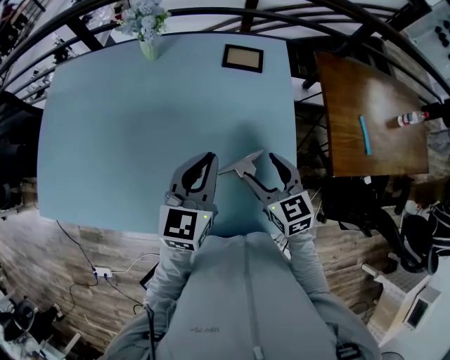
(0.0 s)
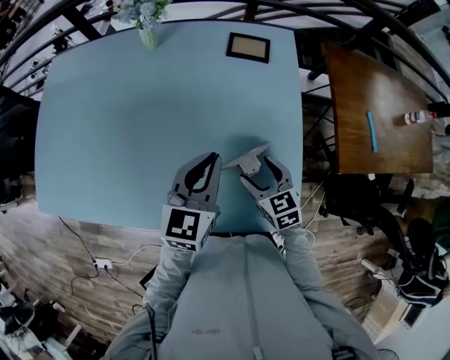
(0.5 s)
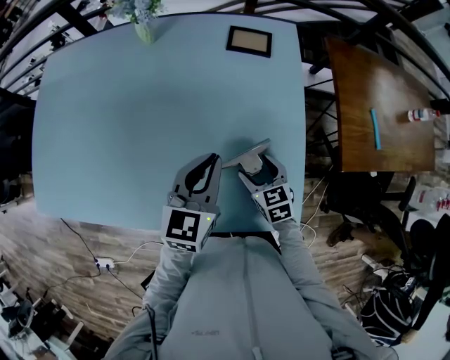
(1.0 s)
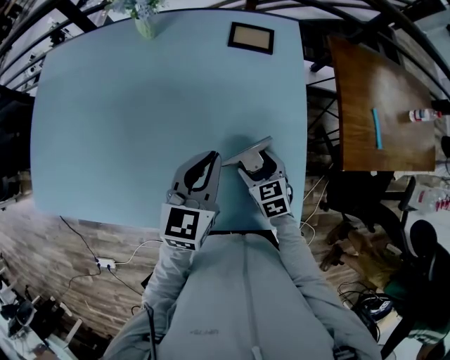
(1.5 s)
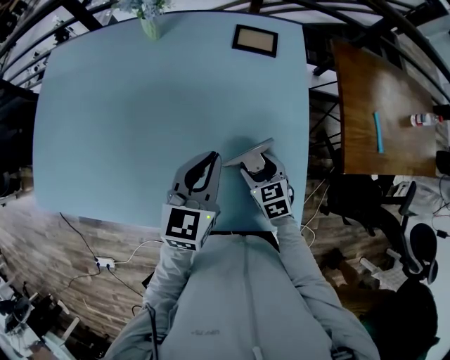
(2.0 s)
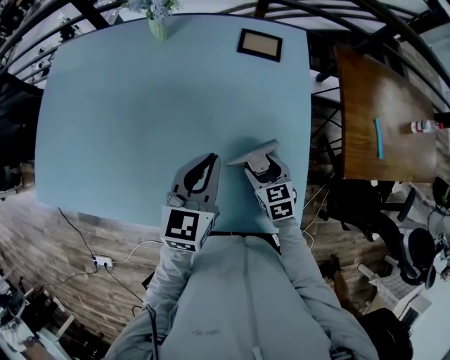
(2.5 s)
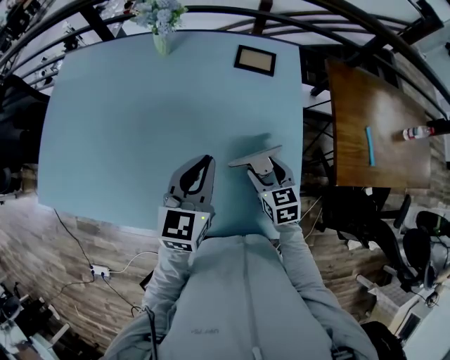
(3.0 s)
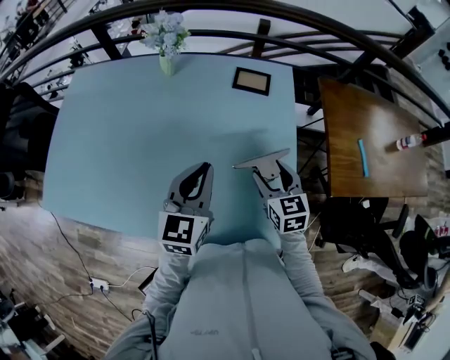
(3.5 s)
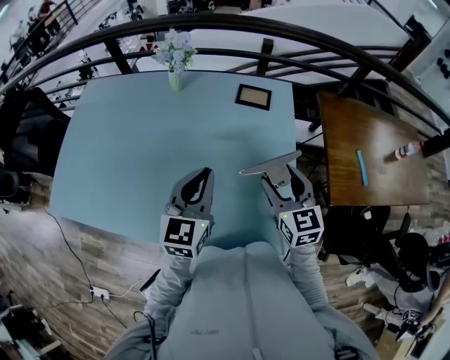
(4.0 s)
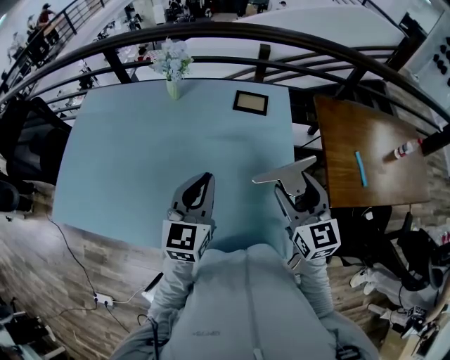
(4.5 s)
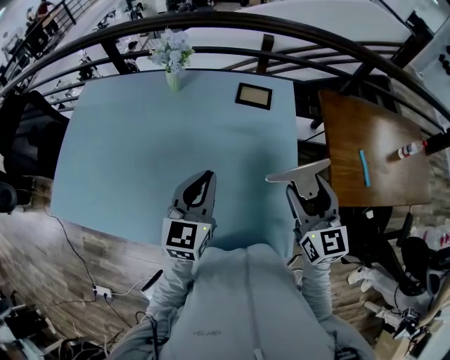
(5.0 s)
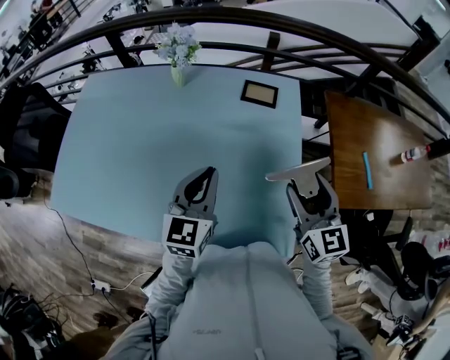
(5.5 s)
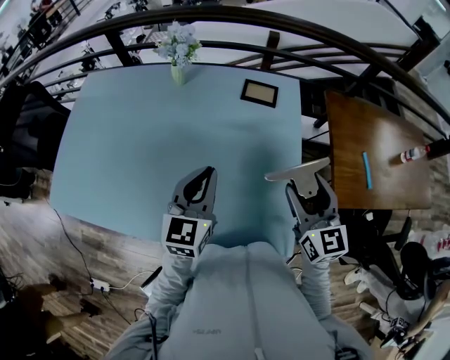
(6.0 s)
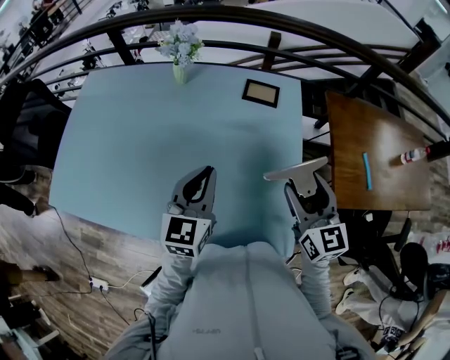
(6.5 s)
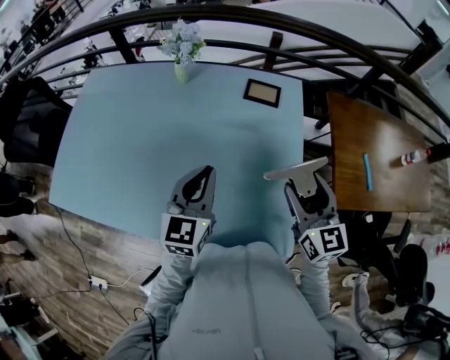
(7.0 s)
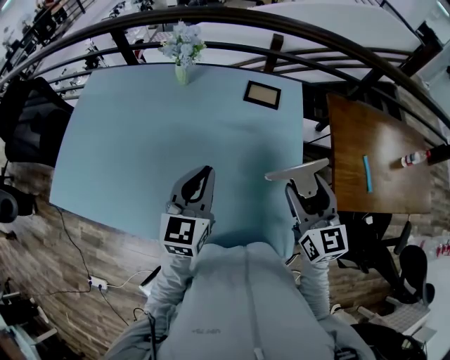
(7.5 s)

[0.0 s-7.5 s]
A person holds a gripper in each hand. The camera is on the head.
0.0 to 2.0 s: The left gripper shifts about 5 cm downward, while the right gripper is displaced downward by approximately 15 cm.
2.0 to 4.0 s: The left gripper heads upward, covering some 10 cm; the right gripper shifts about 25 cm upward, and rotates approximately 30 degrees.
4.0 to 5.5 s: The right gripper ends up about 5 cm from where it was.
5.5 to 7.5 s: The two grippers keep their place.

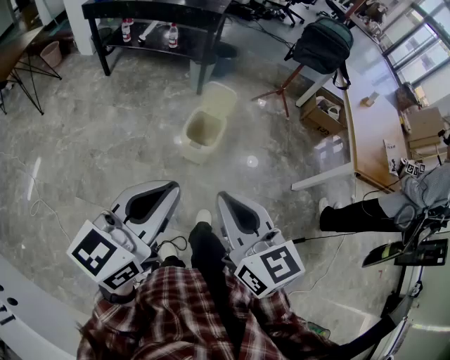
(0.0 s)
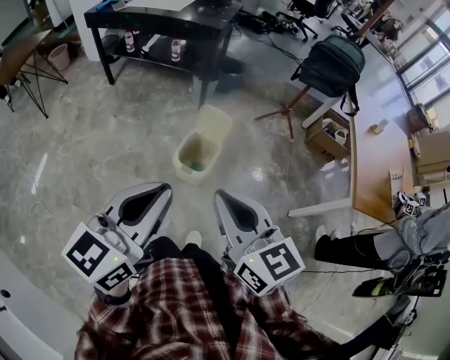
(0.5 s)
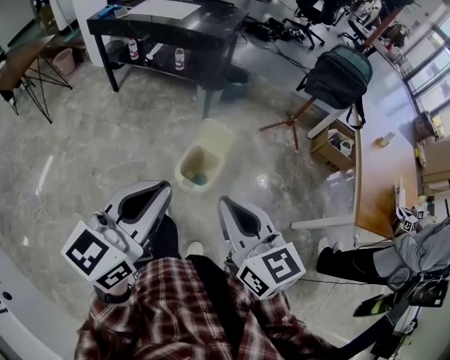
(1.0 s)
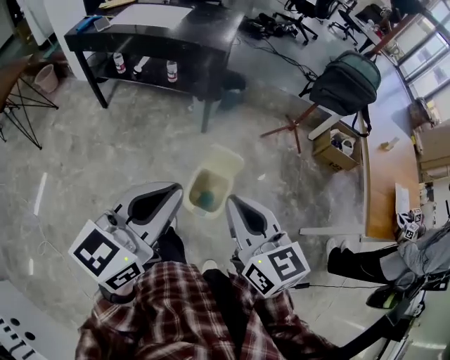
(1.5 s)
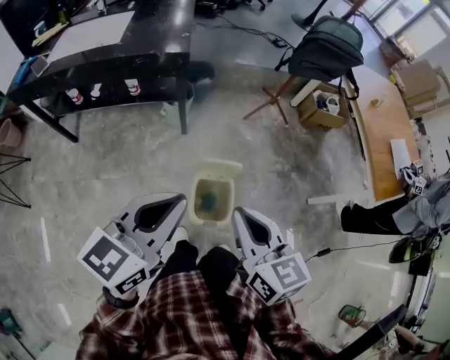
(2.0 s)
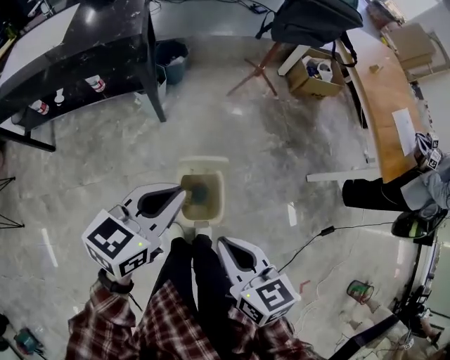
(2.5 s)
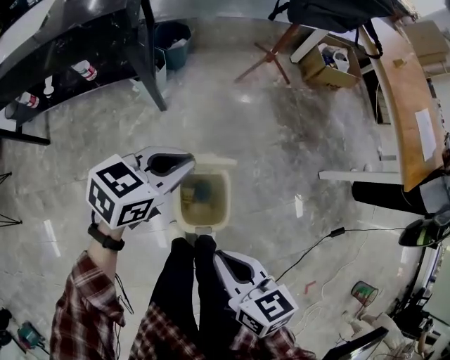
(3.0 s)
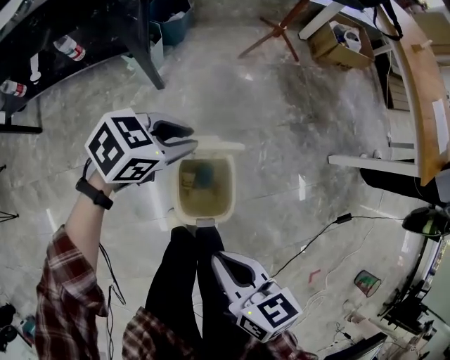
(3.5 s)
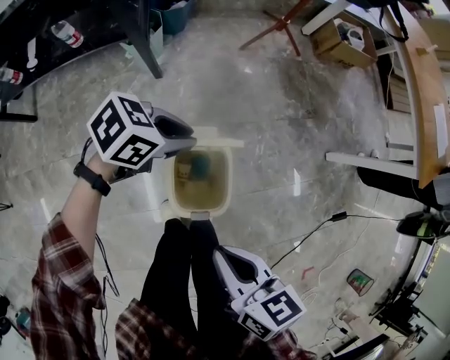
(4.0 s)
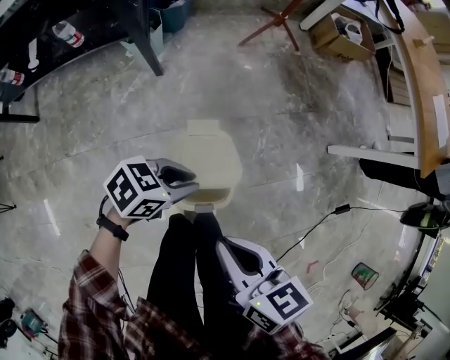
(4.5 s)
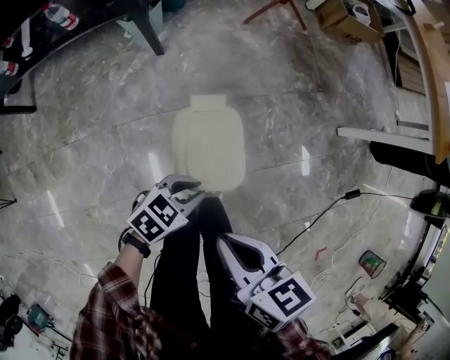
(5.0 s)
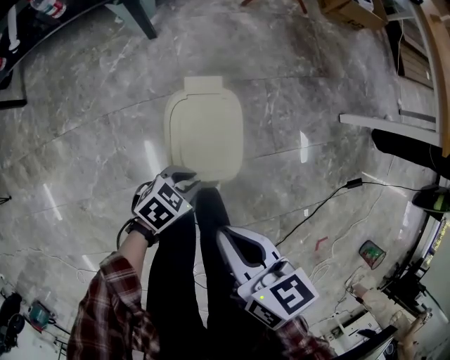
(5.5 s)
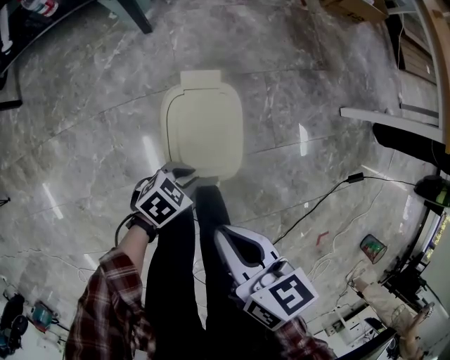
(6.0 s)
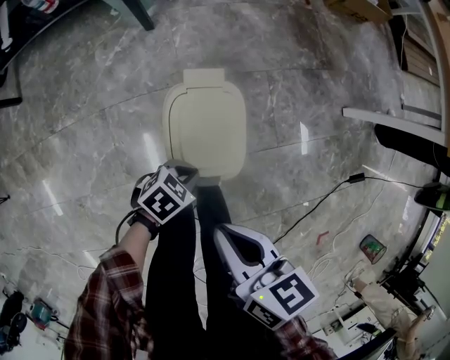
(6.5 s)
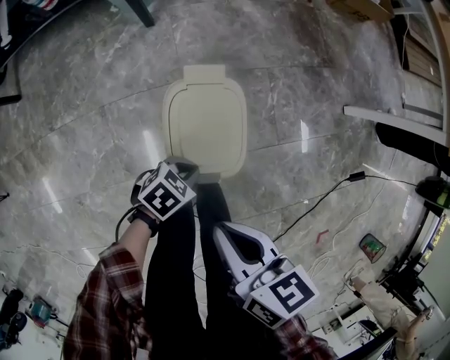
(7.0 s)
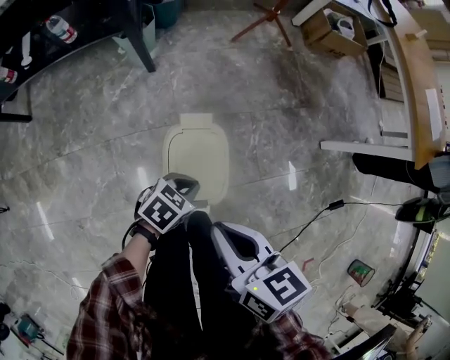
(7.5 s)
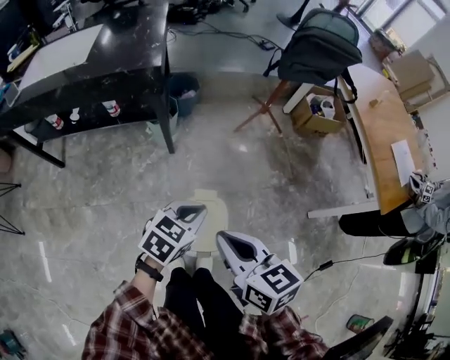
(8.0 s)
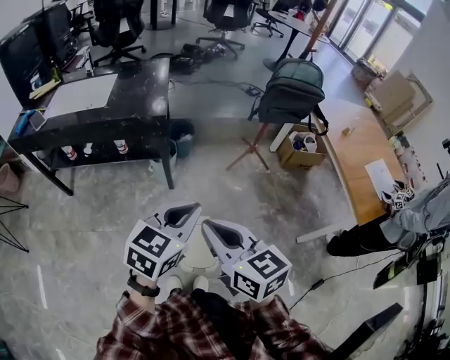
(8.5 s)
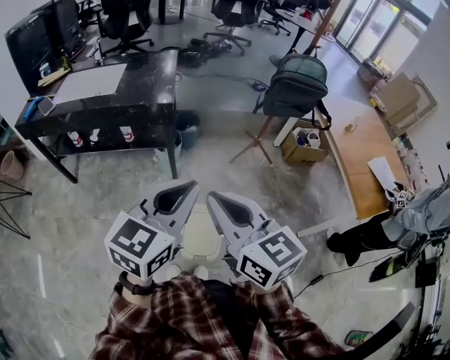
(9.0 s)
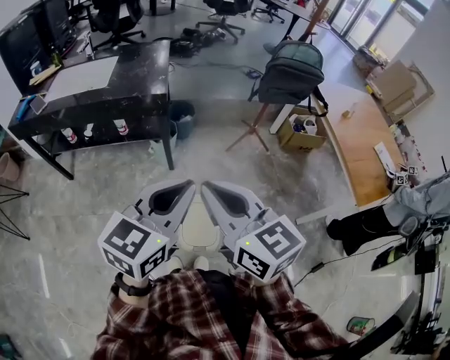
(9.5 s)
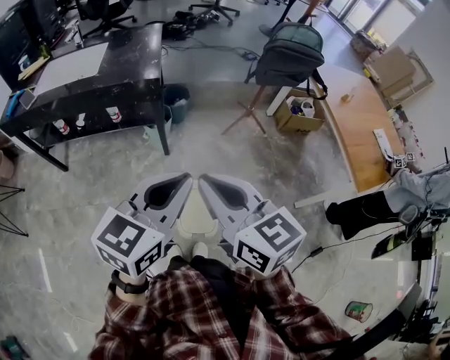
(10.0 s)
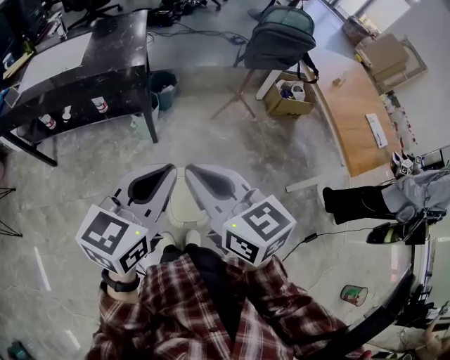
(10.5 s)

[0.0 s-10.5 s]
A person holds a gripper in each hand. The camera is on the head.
0.0 to 2.0 s: The pair of grippers is taken approximately 50 cm. The left gripper rotates roughly 20 degrees; the right gripper turns by some 30 degrees.
2.0 to 4.0 s: Both grippers move downward, approximately 35 cm. The right gripper changes its angle by about 30 degrees. Meanwhile the left gripper turns by roughly 50 degrees.
4.0 to 6.5 s: The right gripper travels downward by some 10 cm; the left gripper shifts by some 30 cm.
6.5 to 8.5 s: Both grippers move upward, some 50 cm. The left gripper points its fingers some 30 degrees further upward. Meanwhile the right gripper changes its angle by about 40 degrees.
8.5 to 10.5 s: The left gripper moves roughly 5 cm.

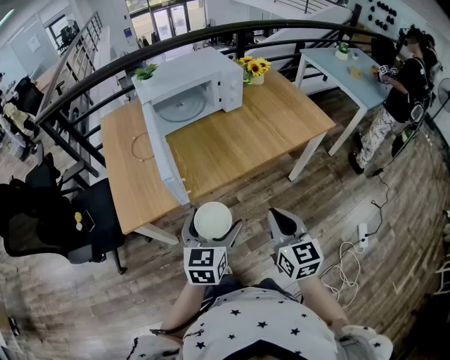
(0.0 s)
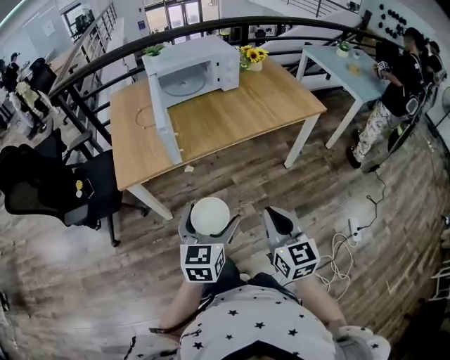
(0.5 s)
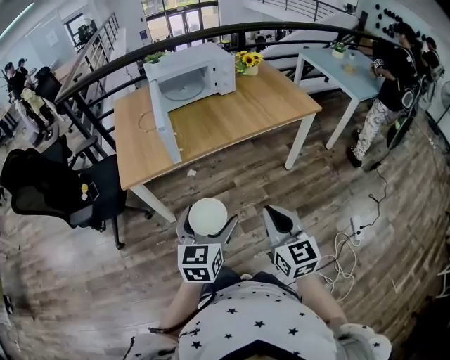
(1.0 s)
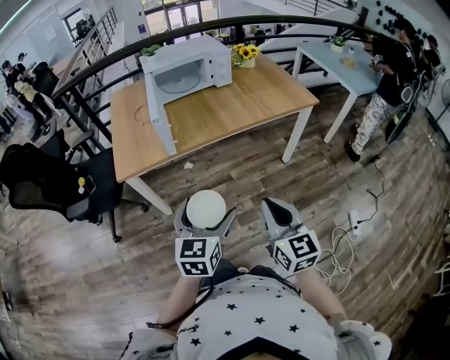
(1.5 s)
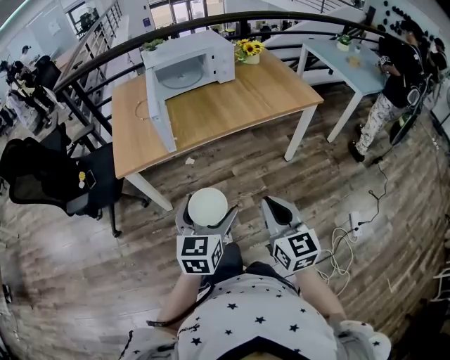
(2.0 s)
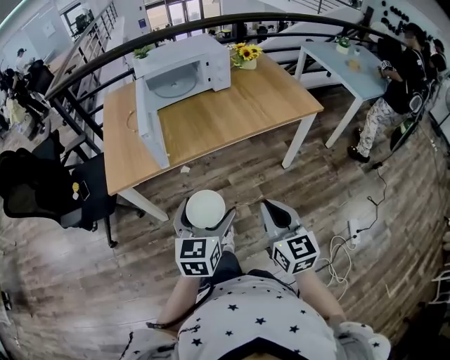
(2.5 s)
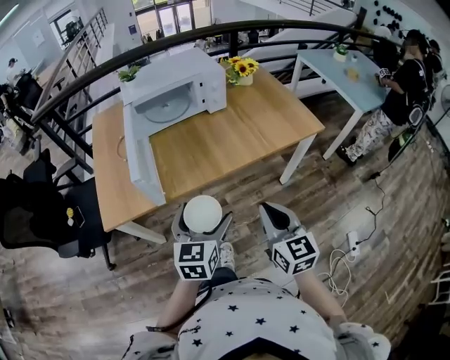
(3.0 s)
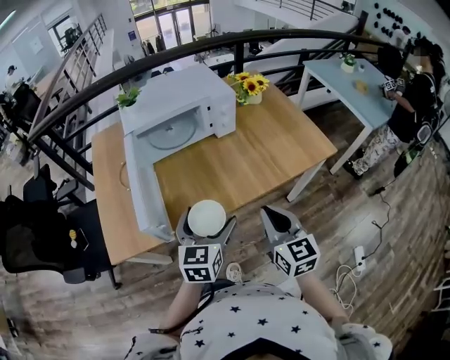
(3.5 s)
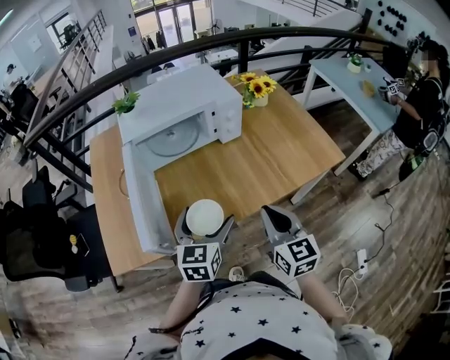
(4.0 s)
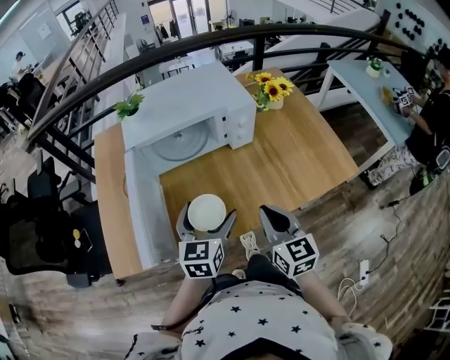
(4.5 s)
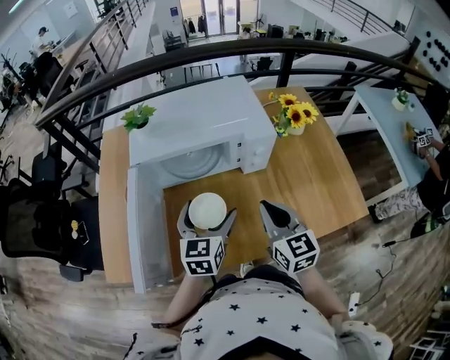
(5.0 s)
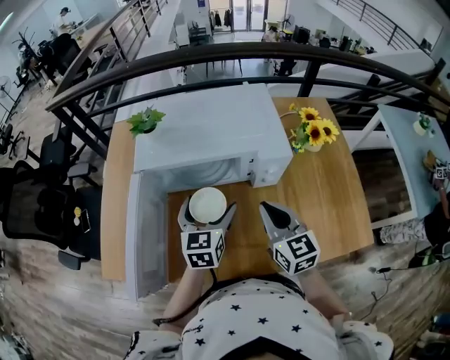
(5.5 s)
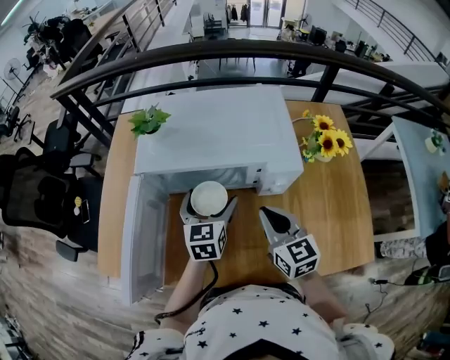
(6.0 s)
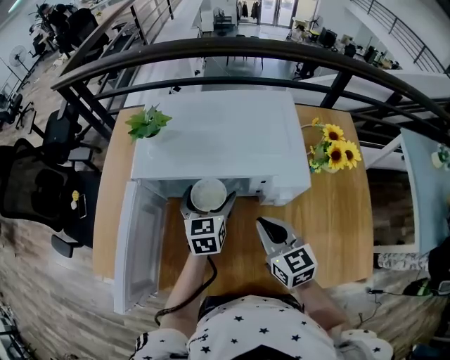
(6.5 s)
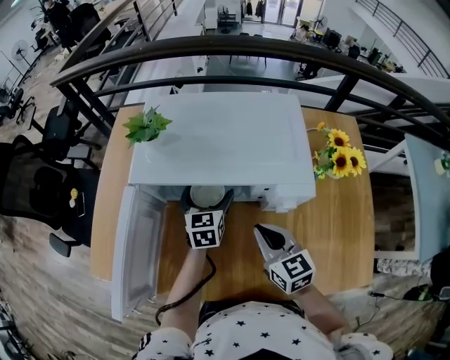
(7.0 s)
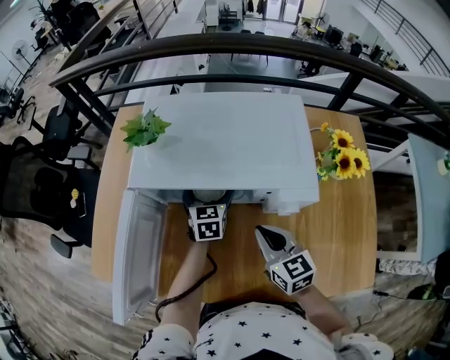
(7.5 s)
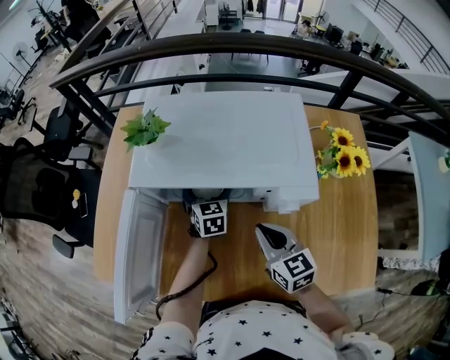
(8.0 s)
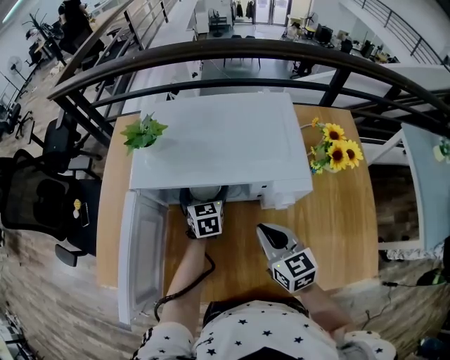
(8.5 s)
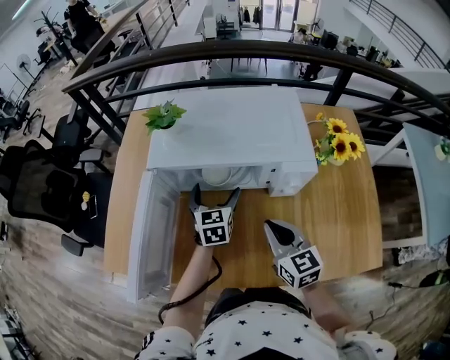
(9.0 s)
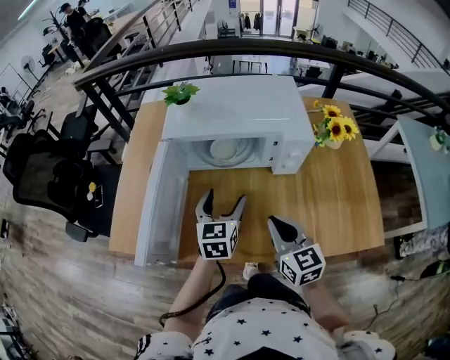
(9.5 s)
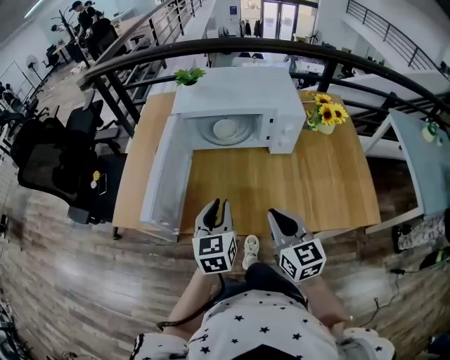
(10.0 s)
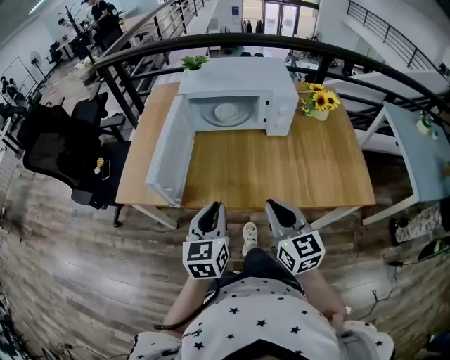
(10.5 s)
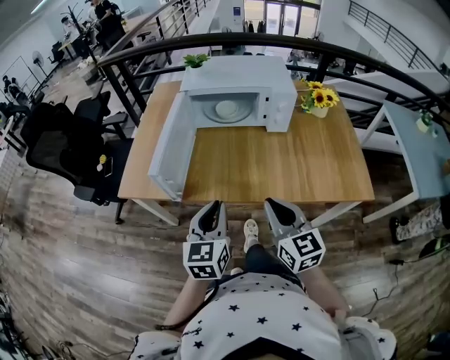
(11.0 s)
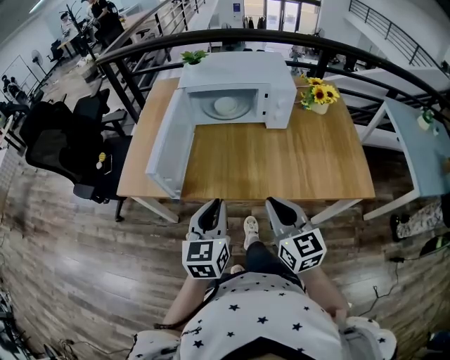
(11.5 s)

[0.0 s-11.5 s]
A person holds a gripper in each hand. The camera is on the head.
0.0 to 2.0 s: The two grippers go approximately 20 cm backward.
2.0 to 4.0 s: Both grippers are carried forward, roughly 40 cm.
4.0 to 6.0 s: The left gripper ends up approximately 30 cm from where it was, and rotates some 30 degrees. The right gripper ends up some 30 cm from where it was, and rotates approximately 30 degrees.
6.0 to 7.5 s: The left gripper shifts roughly 15 cm forward and downward, while the right gripper travels downward by about 5 cm.
7.5 to 9.5 s: The right gripper shifts roughly 15 cm backward. Meanwhile the left gripper goes roughly 20 cm backward and upward.
9.5 to 11.5 s: The grippers both shift backward by about 25 cm. The left gripper closes.
